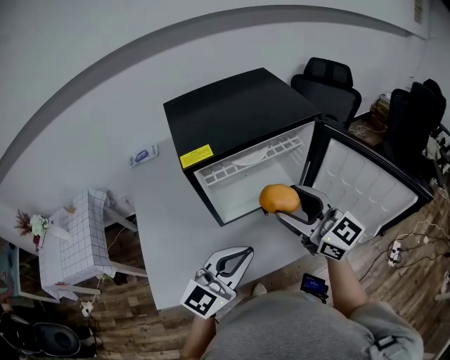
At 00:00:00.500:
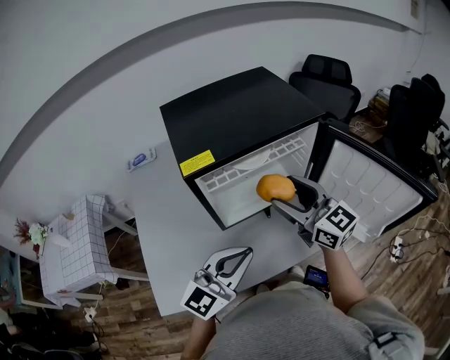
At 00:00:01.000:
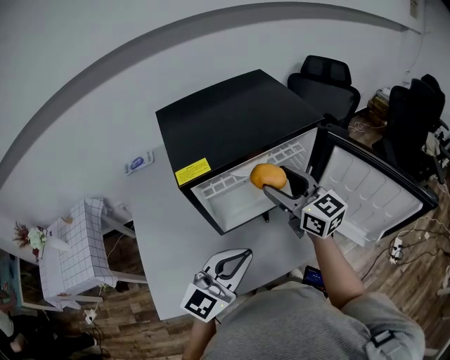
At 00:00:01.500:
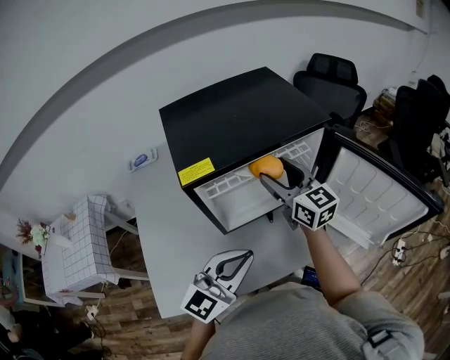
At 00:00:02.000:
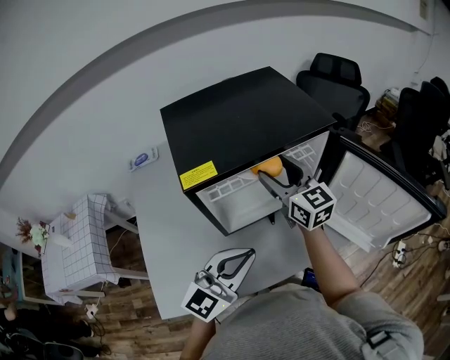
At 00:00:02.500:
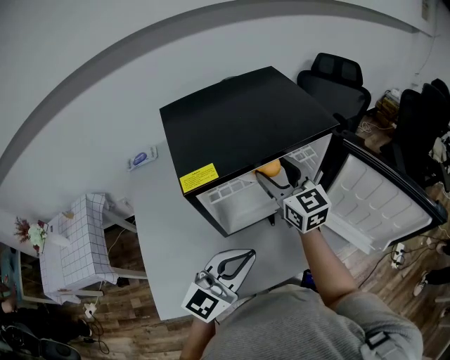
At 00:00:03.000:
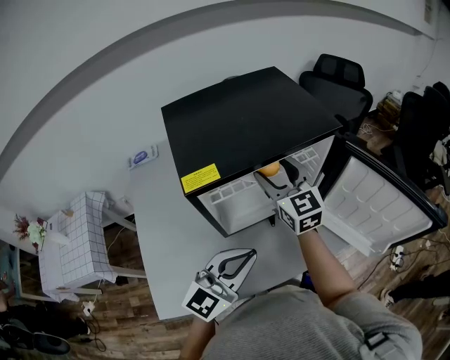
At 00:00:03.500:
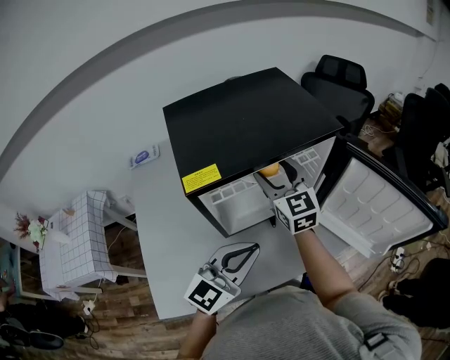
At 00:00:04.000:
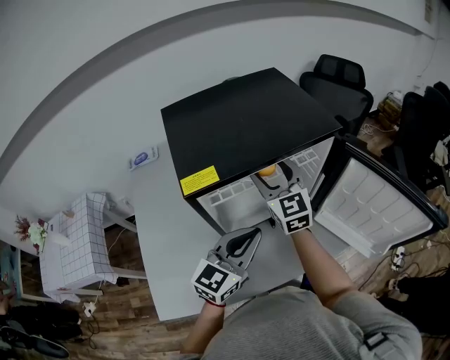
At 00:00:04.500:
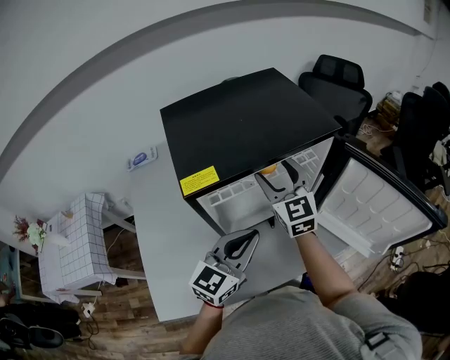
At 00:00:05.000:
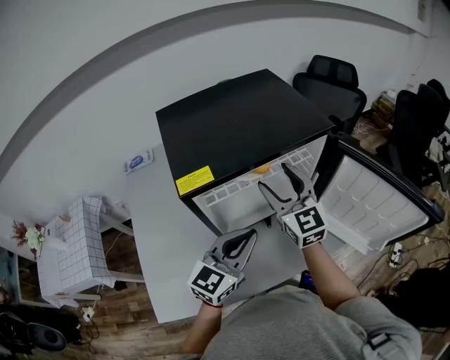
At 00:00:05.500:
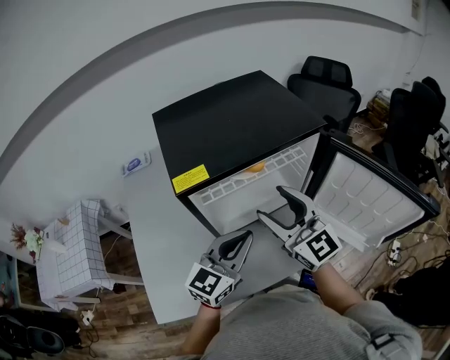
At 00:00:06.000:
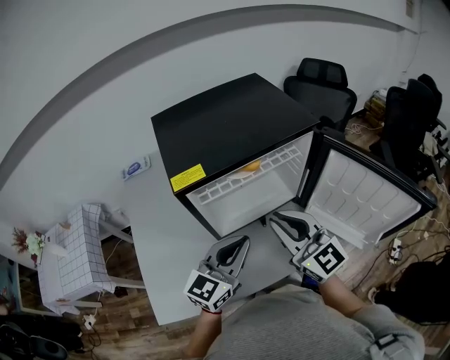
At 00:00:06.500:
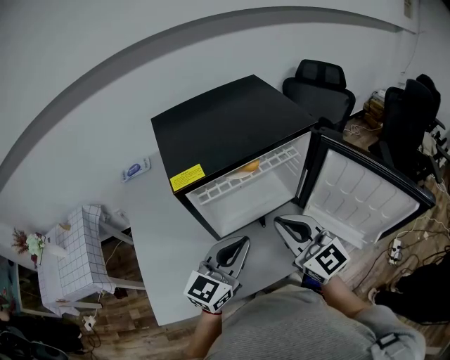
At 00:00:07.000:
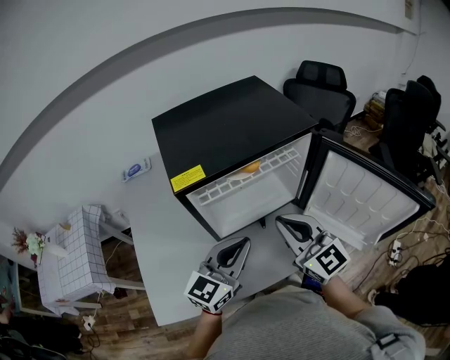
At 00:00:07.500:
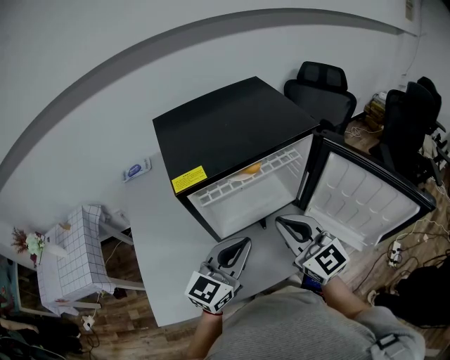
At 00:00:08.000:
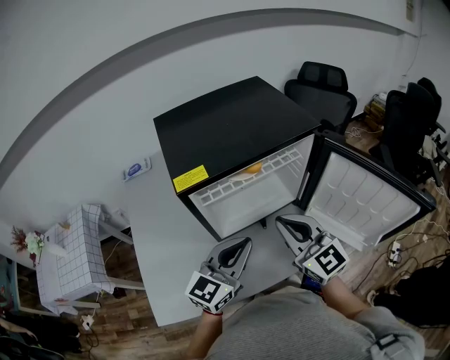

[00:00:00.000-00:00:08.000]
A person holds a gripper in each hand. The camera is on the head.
00:00:00.000 to 00:00:02.000: The left gripper shifts approximately 5 cm forward, while the right gripper heads forward, covering some 15 cm.
00:00:02.000 to 00:00:04.000: The left gripper moves forward, roughly 5 cm.
00:00:04.000 to 00:00:06.000: The right gripper is displaced backward by about 20 cm, and closes its fingers.
00:00:06.000 to 00:00:08.000: The grippers stay close to where they were, moving slightly.

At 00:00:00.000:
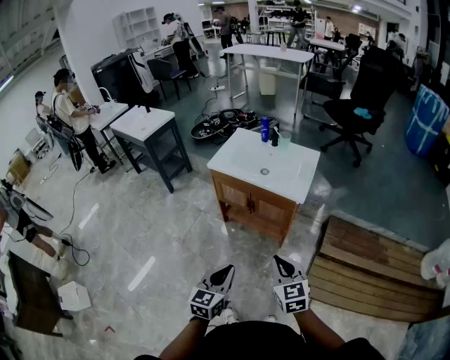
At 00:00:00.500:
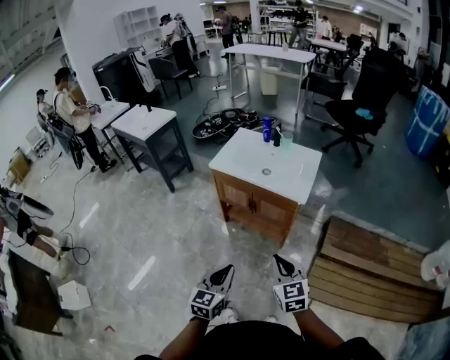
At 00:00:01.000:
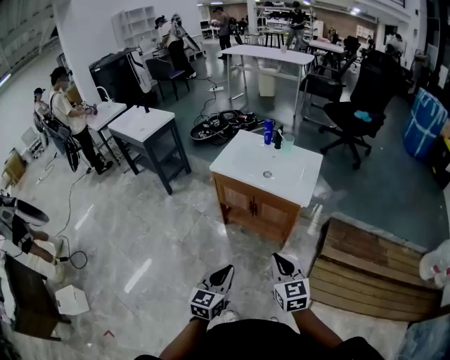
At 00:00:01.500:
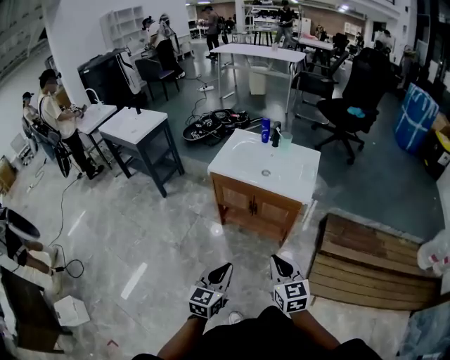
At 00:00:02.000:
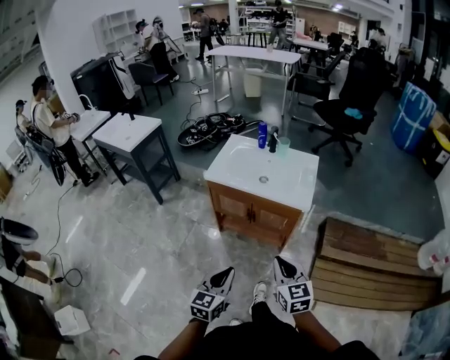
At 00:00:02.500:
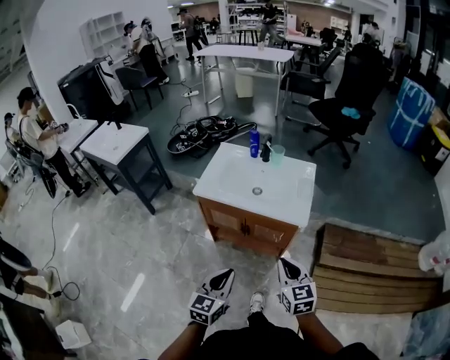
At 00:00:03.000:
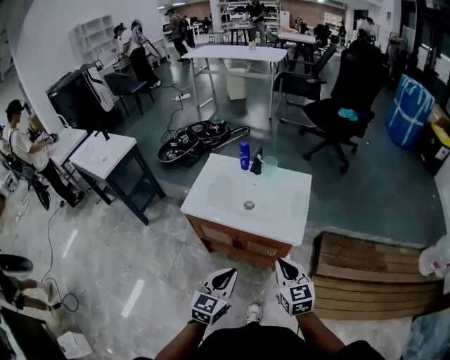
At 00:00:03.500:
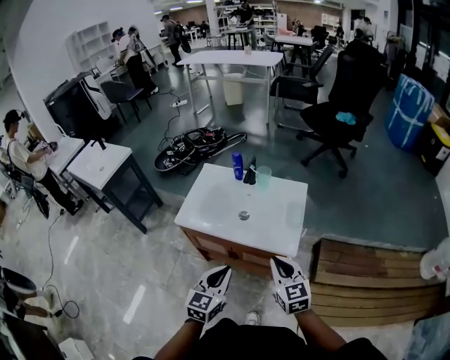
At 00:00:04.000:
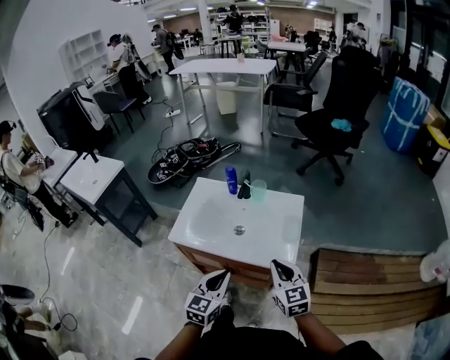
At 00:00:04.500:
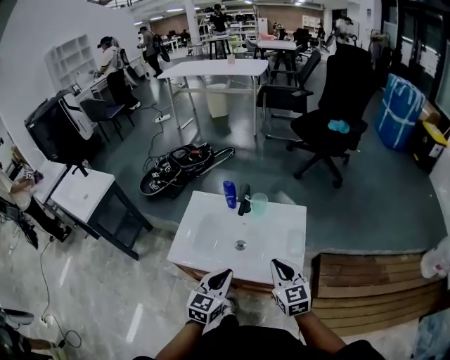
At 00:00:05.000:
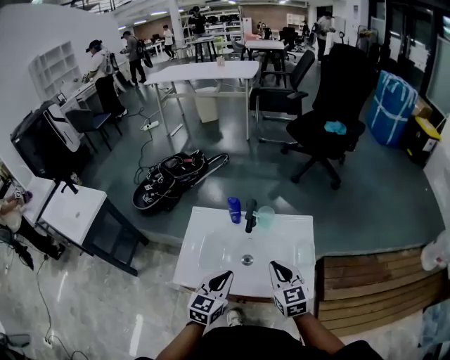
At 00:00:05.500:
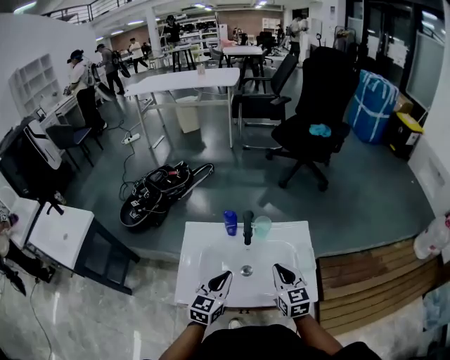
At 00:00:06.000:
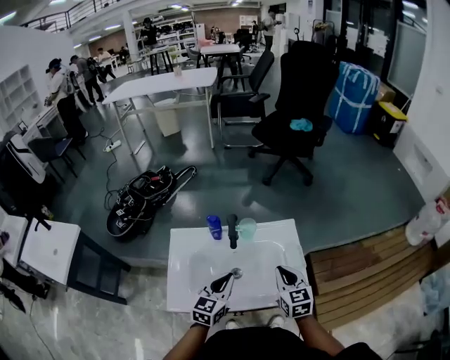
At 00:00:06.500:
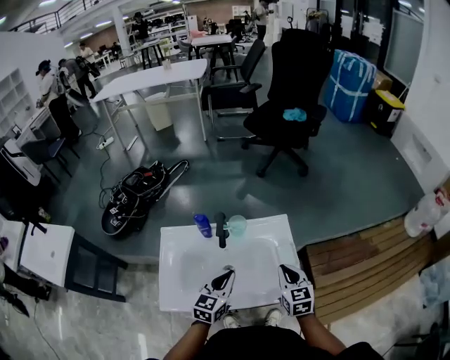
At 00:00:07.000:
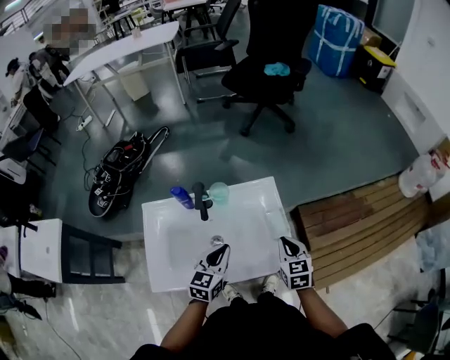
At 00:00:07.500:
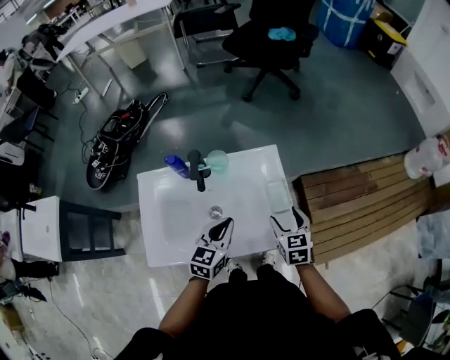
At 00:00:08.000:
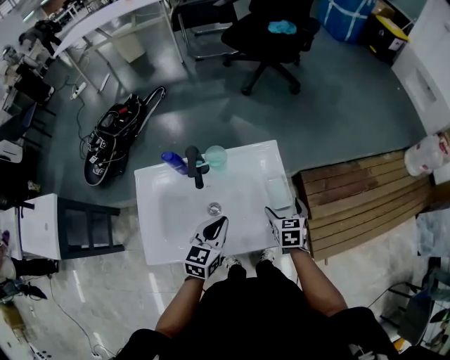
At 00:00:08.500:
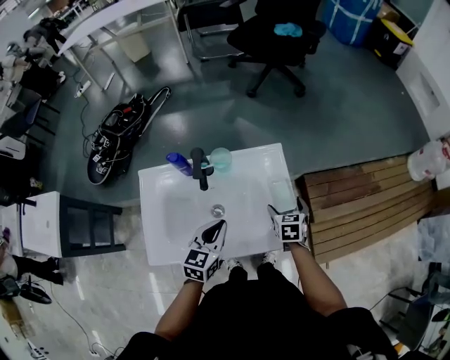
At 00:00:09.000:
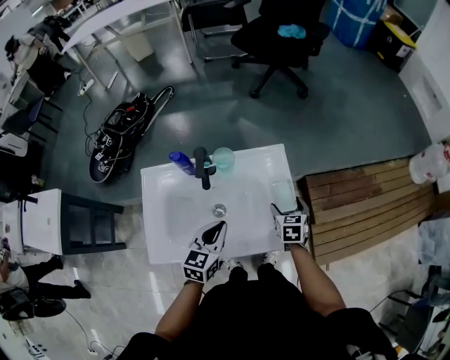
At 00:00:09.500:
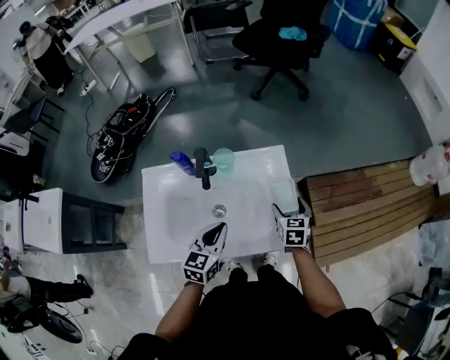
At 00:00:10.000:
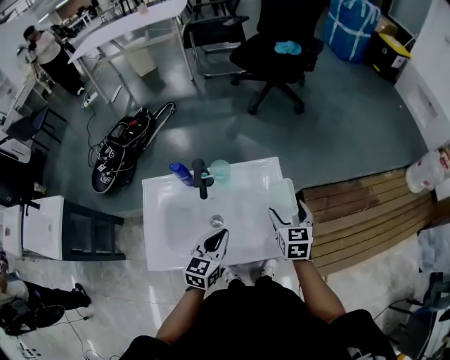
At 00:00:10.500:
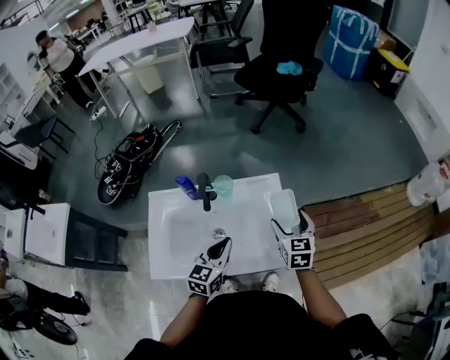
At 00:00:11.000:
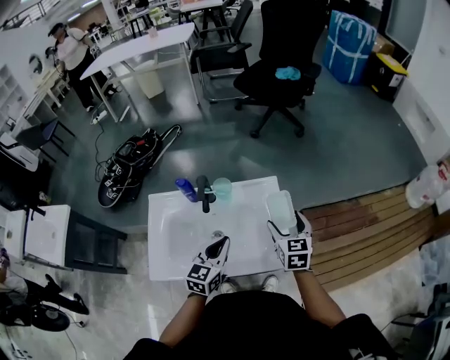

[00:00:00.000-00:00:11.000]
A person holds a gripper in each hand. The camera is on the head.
00:00:00.000 to 00:00:02.000: The two grippers go about 10 cm to the left and forward.
00:00:02.000 to 00:00:03.500: The two grippers go about 25 cm forward.
00:00:03.500 to 00:00:05.500: The grippers both shift forward by about 25 cm. The right gripper turns by about 20 degrees.
00:00:05.500 to 00:00:07.500: Both grippers move to the right and downward, approximately 15 cm. The right gripper turns by about 20 degrees, and opens up.
00:00:07.500 to 00:00:09.000: The right gripper heads downward and forward, covering about 10 cm.
00:00:09.000 to 00:00:11.000: The right gripper travels upward by approximately 15 cm. Meanwhile the left gripper shifts by roughly 5 cm.

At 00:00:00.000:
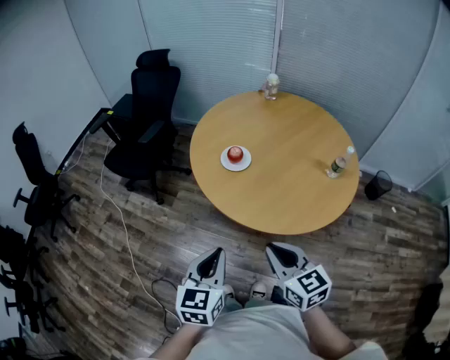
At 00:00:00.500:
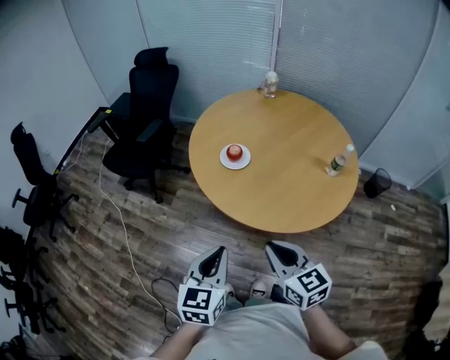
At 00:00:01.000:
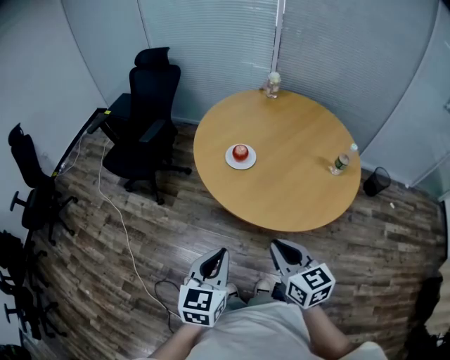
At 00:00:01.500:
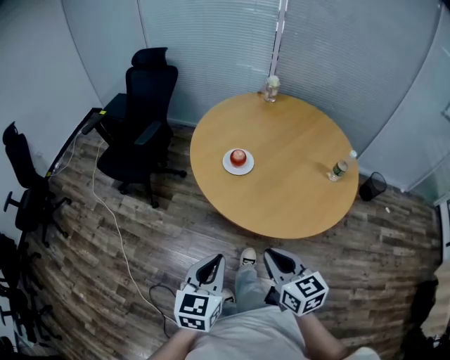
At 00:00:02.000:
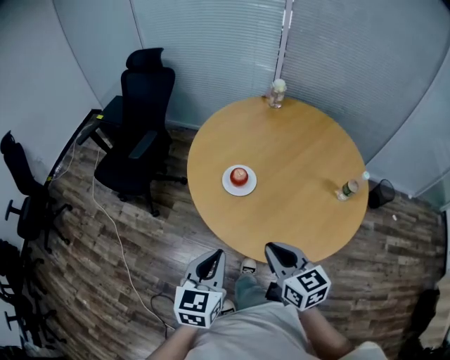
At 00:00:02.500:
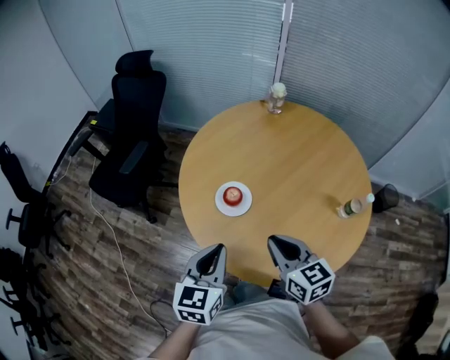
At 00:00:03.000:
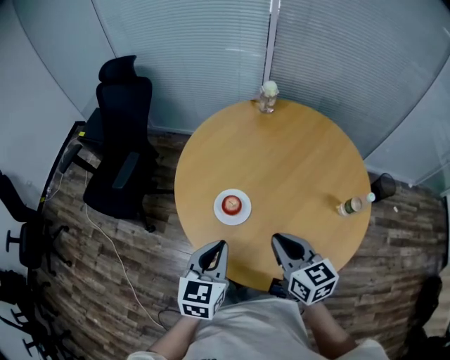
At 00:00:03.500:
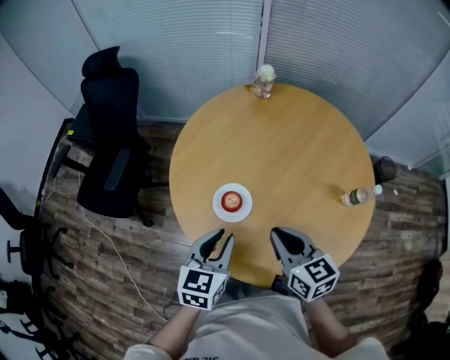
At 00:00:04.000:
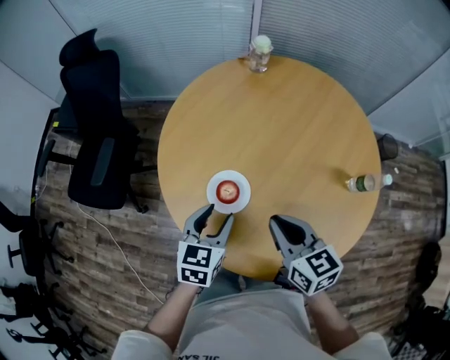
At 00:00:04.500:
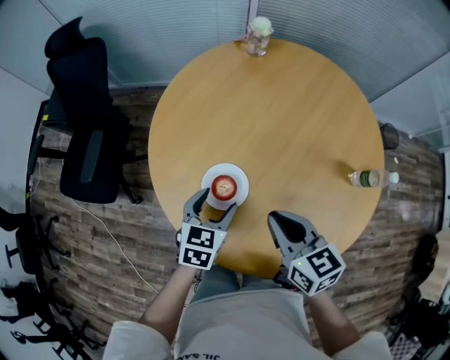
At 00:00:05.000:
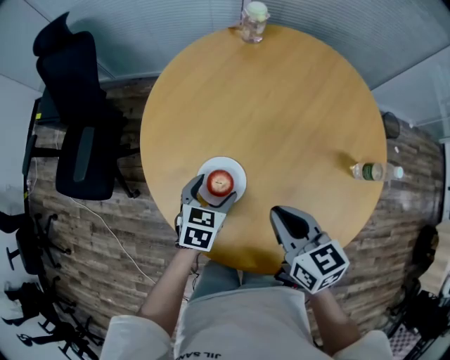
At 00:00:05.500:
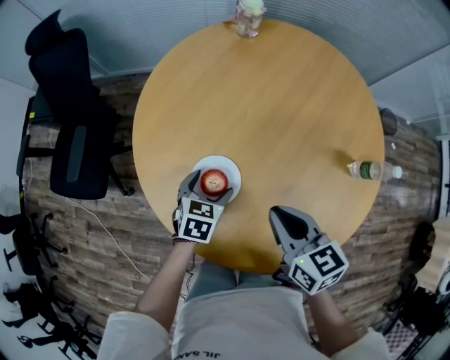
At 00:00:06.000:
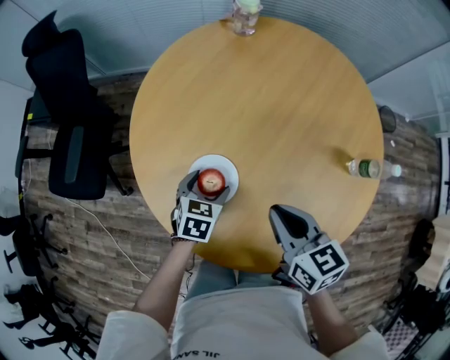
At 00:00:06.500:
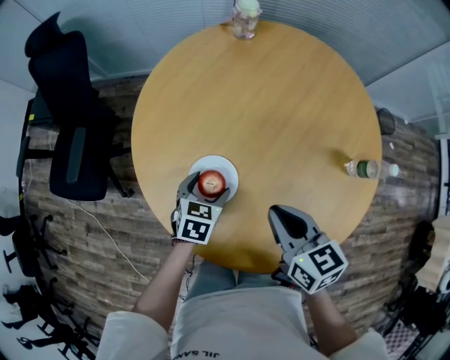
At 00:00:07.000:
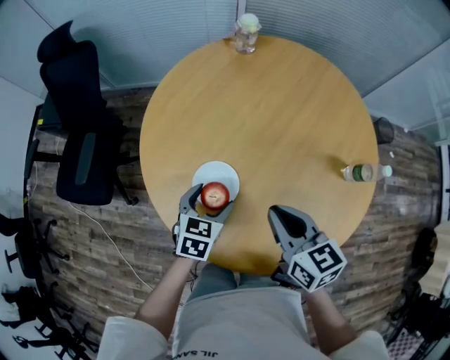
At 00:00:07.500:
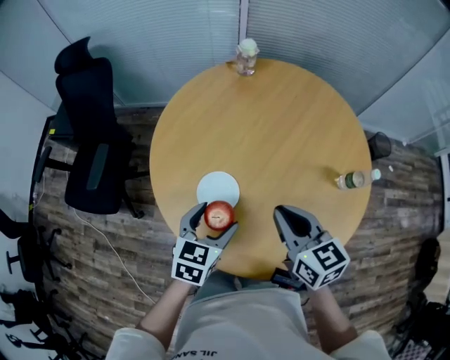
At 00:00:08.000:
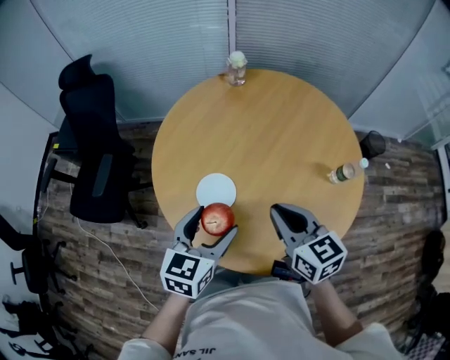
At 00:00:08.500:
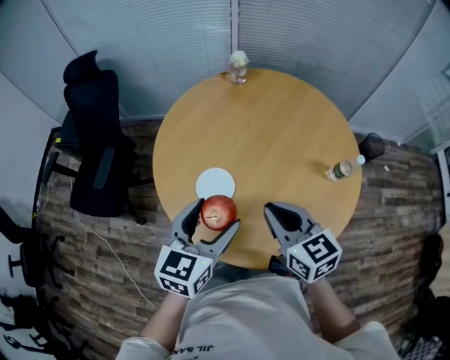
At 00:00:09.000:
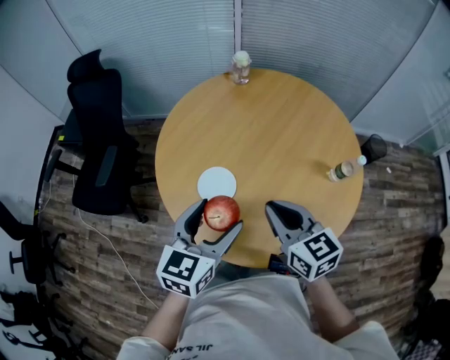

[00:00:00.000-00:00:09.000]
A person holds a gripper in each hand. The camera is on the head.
00:00:00.000 to 00:00:02.000: Both grippers move forward, about 15 cm.
00:00:02.000 to 00:00:04.500: The right gripper shifts about 20 cm forward, while the left gripper travels forward and downward by roughly 30 cm, swivels about 30 degrees, and opens.
00:00:04.500 to 00:00:07.000: The left gripper moves approximately 10 cm downward and comes back.
00:00:07.000 to 00:00:09.000: The left gripper is displaced upward and backward by about 25 cm, and changes its angle by some 30 degrees, while the right gripper is displaced upward by about 10 cm.
